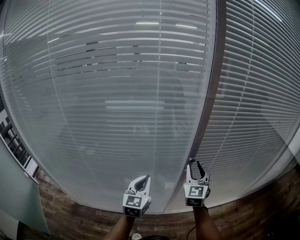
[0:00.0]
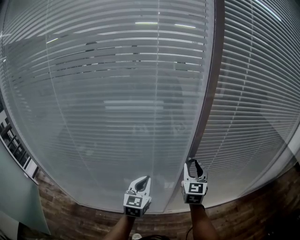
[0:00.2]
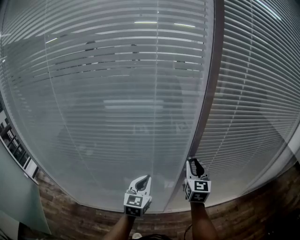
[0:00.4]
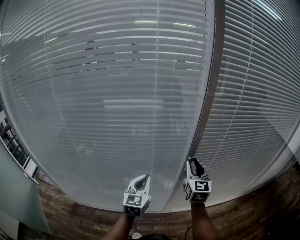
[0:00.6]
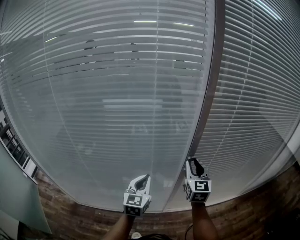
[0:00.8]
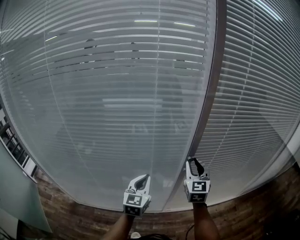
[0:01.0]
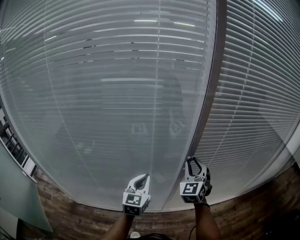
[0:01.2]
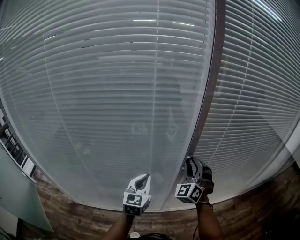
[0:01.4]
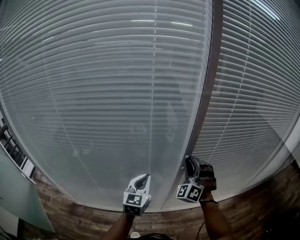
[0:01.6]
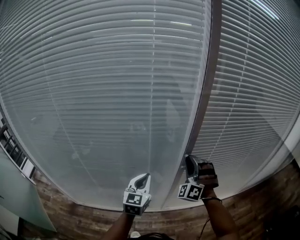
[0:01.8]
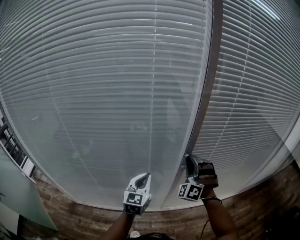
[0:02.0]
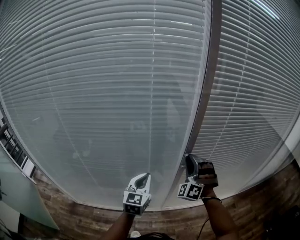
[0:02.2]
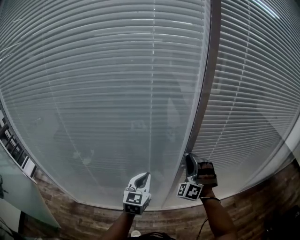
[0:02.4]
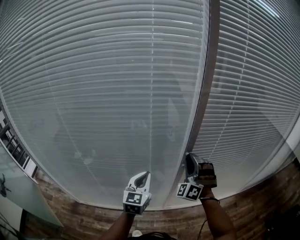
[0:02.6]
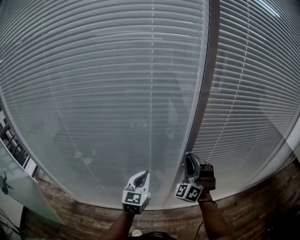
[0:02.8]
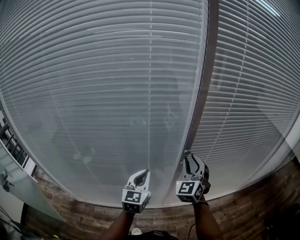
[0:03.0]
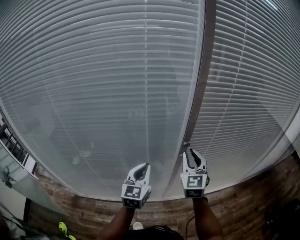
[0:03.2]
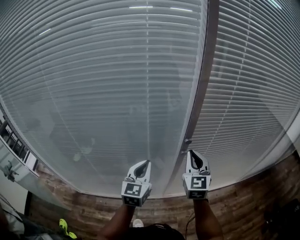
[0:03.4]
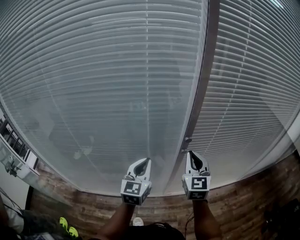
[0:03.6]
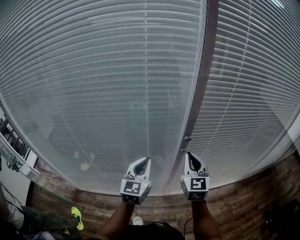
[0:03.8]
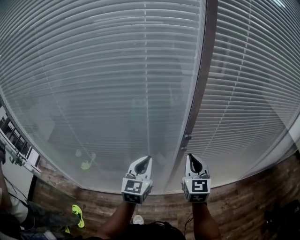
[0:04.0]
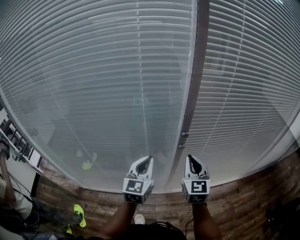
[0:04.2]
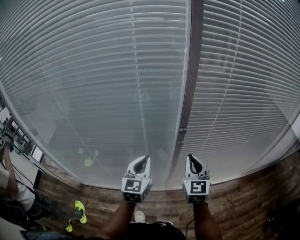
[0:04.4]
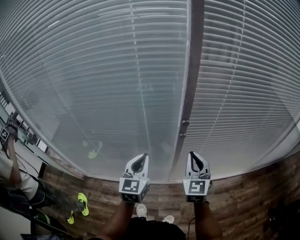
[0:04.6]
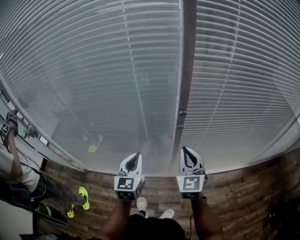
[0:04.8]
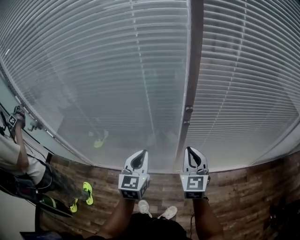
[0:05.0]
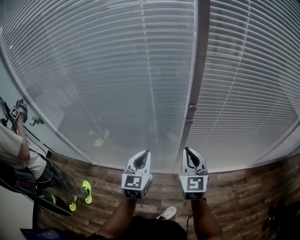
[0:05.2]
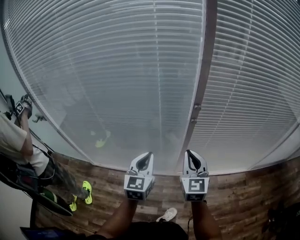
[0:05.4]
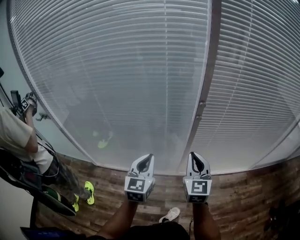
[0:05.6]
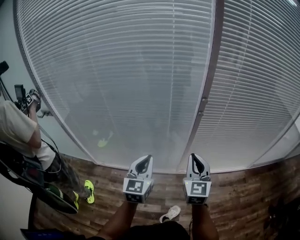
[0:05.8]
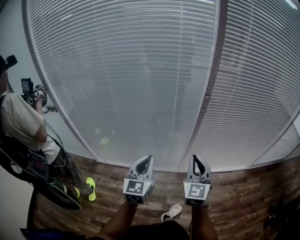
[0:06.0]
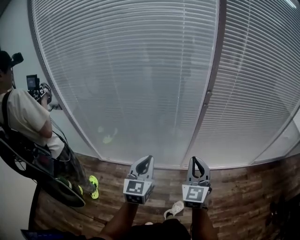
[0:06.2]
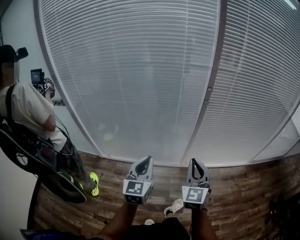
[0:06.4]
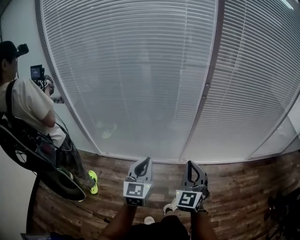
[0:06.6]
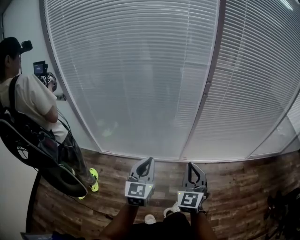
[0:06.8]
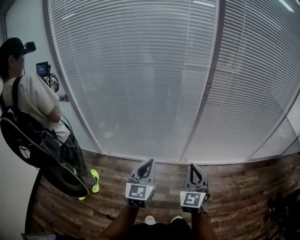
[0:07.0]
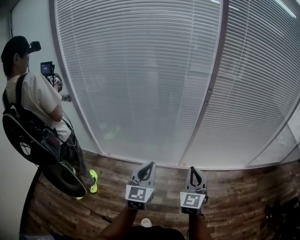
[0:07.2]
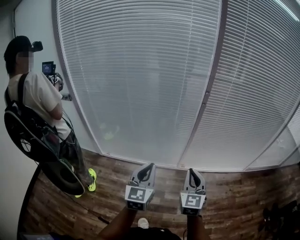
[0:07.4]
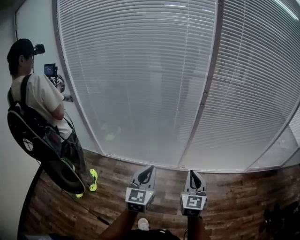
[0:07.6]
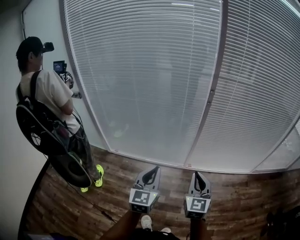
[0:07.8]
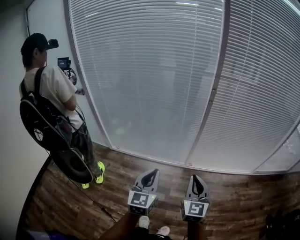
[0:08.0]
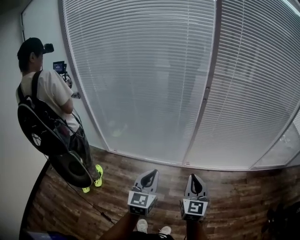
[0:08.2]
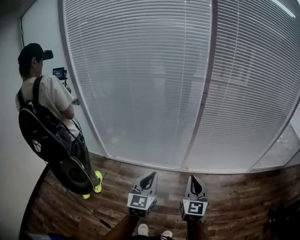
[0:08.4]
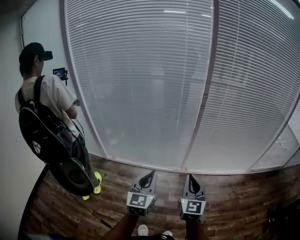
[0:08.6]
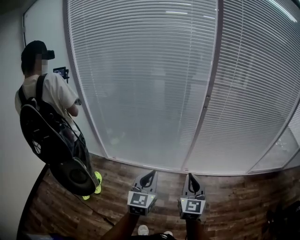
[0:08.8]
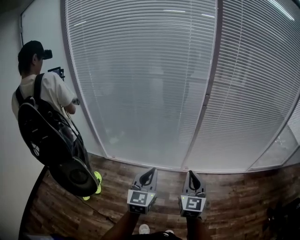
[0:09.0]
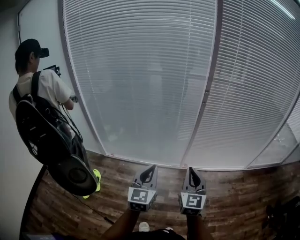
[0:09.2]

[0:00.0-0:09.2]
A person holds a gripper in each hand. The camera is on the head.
0:00.0 to 0:01.6: The right gripper rolls counterclockwise, seen from behind, by about 50 degrees.
0:01.6 to 0:03.0: The right gripper turns by some 30 degrees.
0:03.0 to 0:04.6: Both grippers travel together backward, roughly 5 cm. The right gripper changes its angle by approximately 30 degrees, and closes its fingers.
0:04.6 to 0:06.2: Both grippers move backward and to the left, about 25 cm.
0:06.2 to 0:07.6: The two grippers go roughly 10 cm backward.
0:07.6 to 0:09.2: The left gripper moves about 5 cm. Meanwhile the right gripper goes some 5 cm backward.

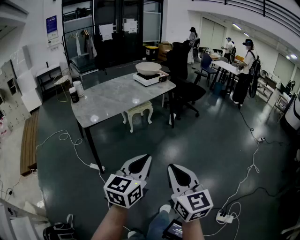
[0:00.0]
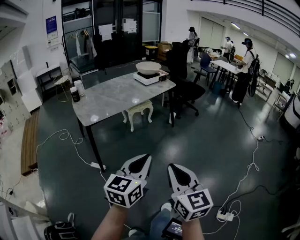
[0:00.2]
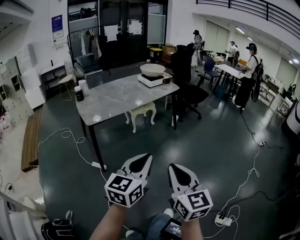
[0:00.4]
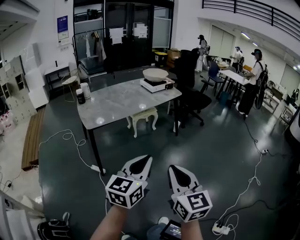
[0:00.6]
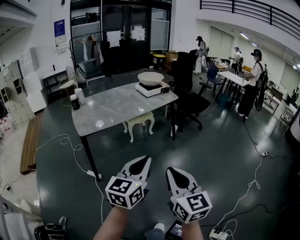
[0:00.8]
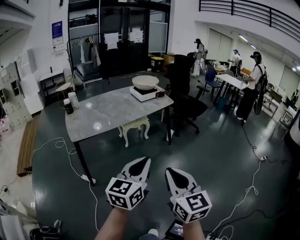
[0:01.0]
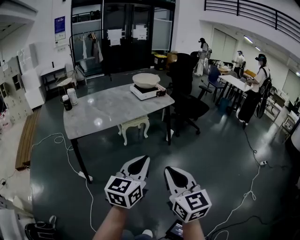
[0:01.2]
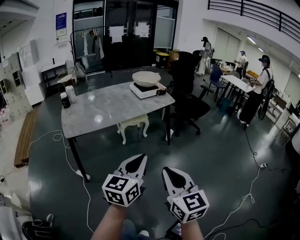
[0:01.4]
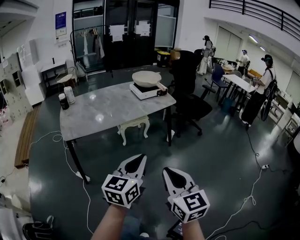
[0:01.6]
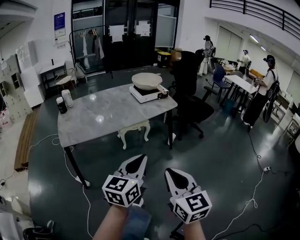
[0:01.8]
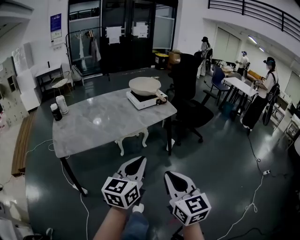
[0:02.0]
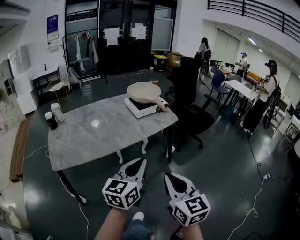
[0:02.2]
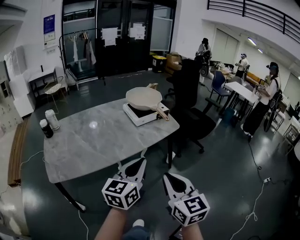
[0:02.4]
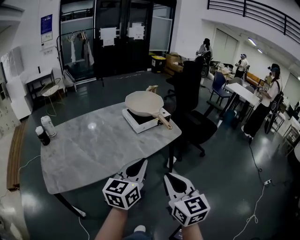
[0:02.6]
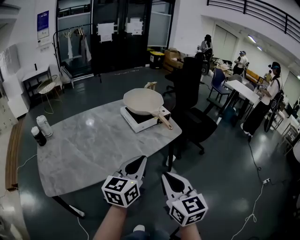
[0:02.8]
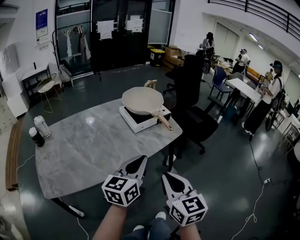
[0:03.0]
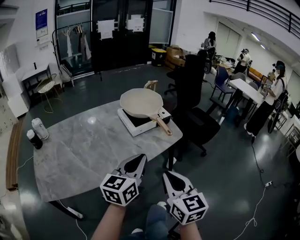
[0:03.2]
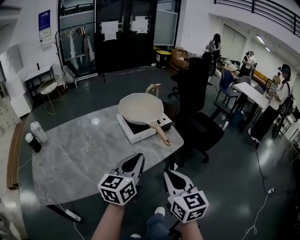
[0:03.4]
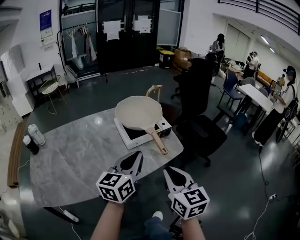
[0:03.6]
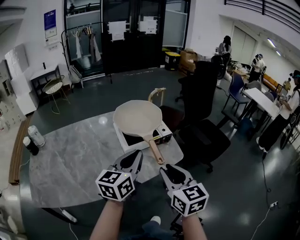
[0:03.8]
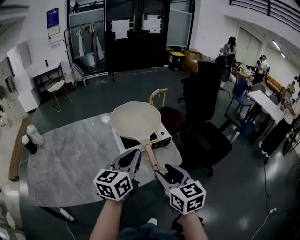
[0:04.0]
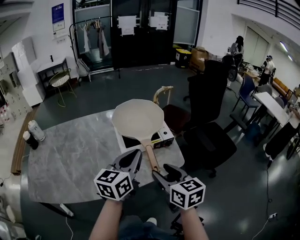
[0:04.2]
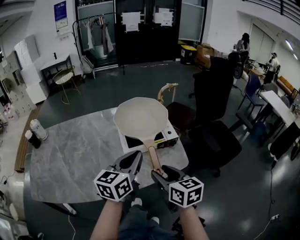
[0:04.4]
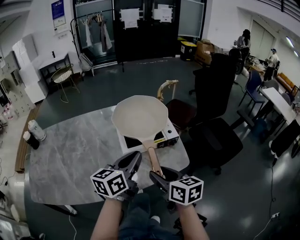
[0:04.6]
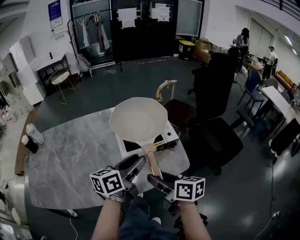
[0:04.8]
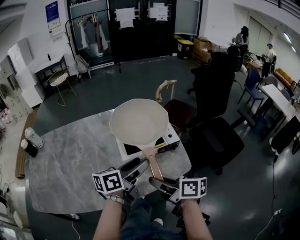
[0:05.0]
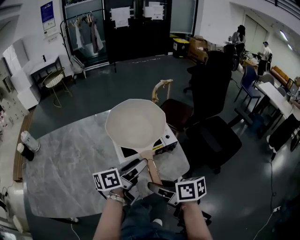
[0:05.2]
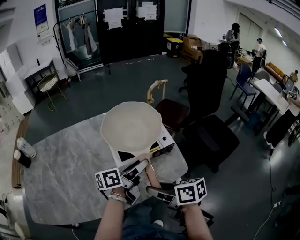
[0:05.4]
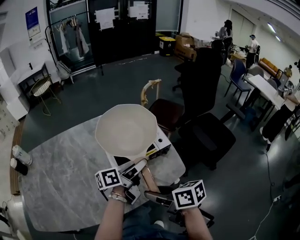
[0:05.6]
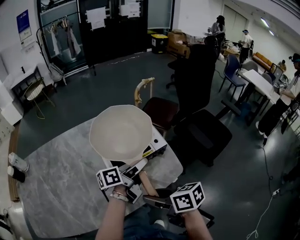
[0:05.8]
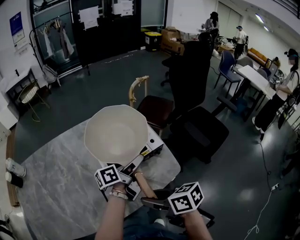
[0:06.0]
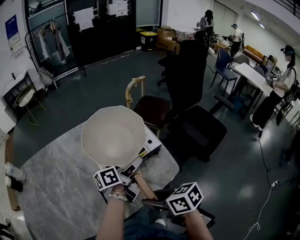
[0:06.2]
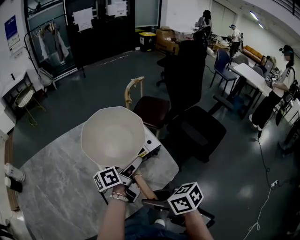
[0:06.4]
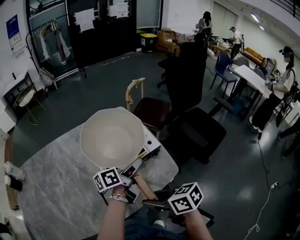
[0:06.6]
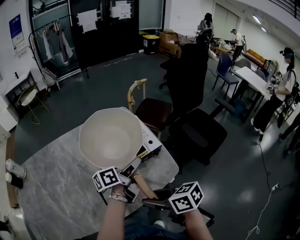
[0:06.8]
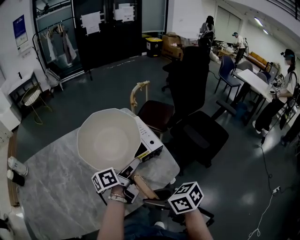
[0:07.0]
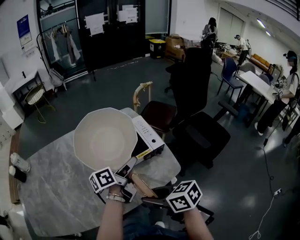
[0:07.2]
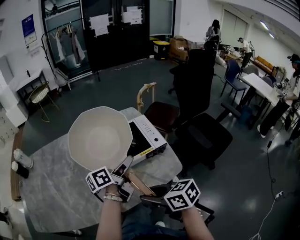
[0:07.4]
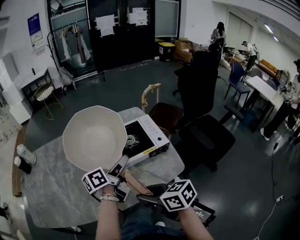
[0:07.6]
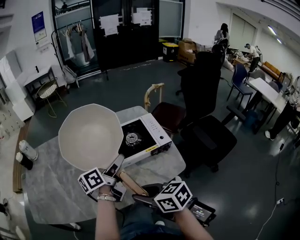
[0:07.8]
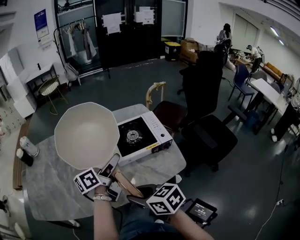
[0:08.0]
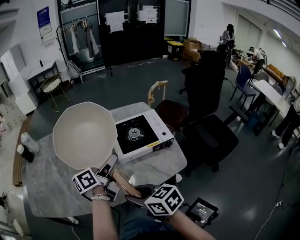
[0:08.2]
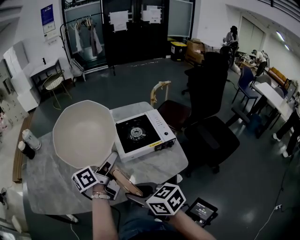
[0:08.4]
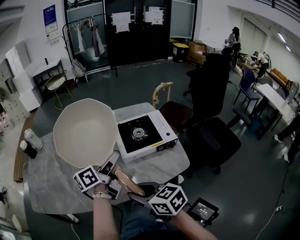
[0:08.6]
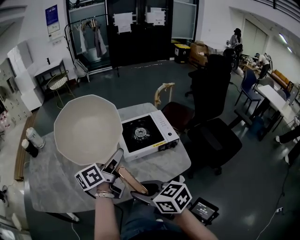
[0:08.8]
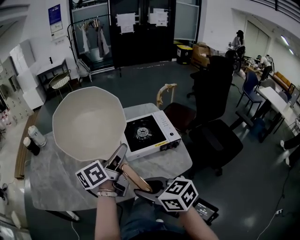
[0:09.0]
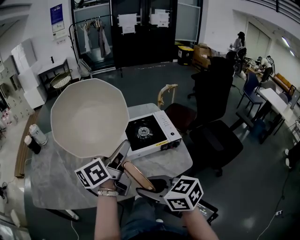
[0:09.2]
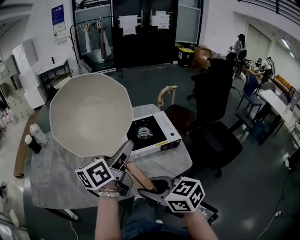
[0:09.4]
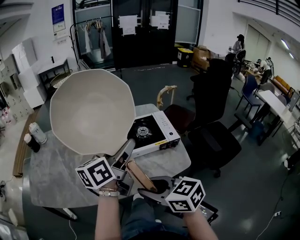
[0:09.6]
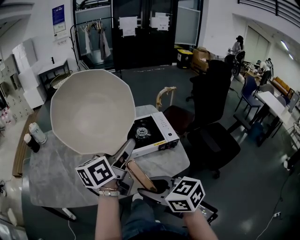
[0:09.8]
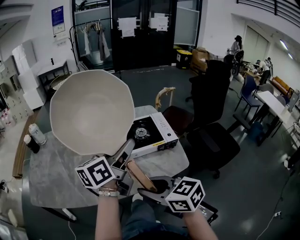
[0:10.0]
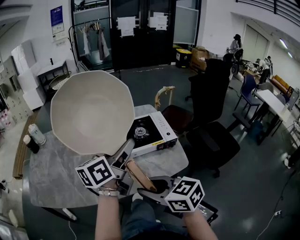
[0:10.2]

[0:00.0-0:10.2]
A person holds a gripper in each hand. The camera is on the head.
0:00.0 to 0:01.4: Both grippers travel together forward and to the right, roughly 20 cm.
0:01.4 to 0:03.0: The two grippers travel together, forward, roughly 40 cm.
0:03.0 to 0:04.4: Both grippers travel together forward, about 25 cm. The right gripper rotates about 30 degrees, and opens.
0:04.4 to 0:05.8: The right gripper changes its angle by roughly 30 degrees, while the left gripper shifts about 15 cm downward, forward and to the right, twists approximately 50 degrees counterclockwise, seen from behind, and opens.
0:05.8 to 0:07.2: There are only small adjustments of the grippers.
0:07.2 to 0:08.8: The right gripper moves to the left, approximately 10 cm, while the left gripper shifts roughly 15 cm to the left and upward, and turns by some 20 degrees.
0:08.8 to 0:10.2: The right gripper heads upward, covering roughly 5 cm. The left gripper travels upward by some 10 cm.

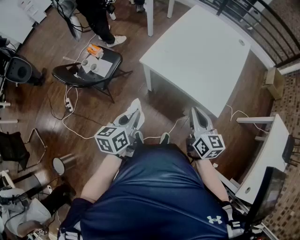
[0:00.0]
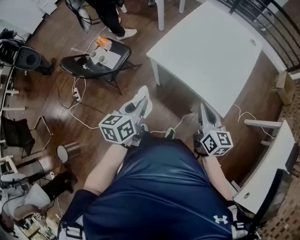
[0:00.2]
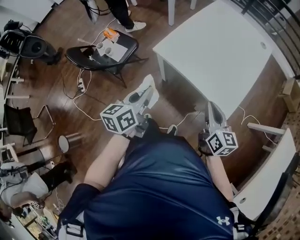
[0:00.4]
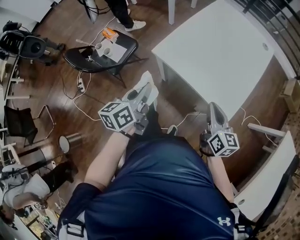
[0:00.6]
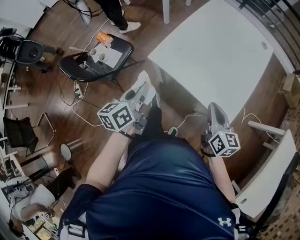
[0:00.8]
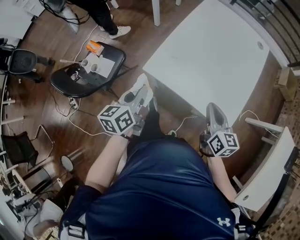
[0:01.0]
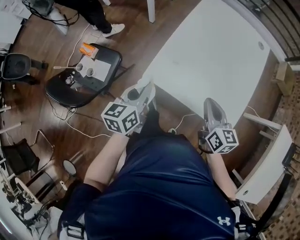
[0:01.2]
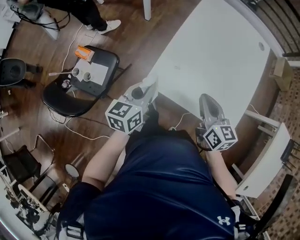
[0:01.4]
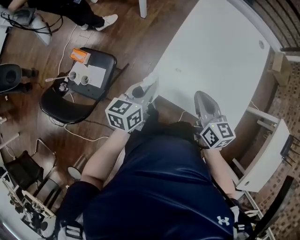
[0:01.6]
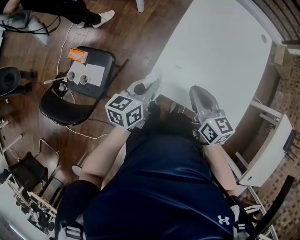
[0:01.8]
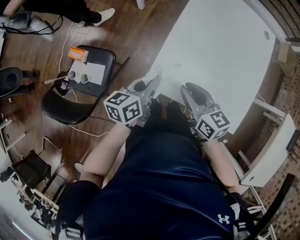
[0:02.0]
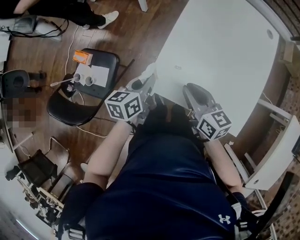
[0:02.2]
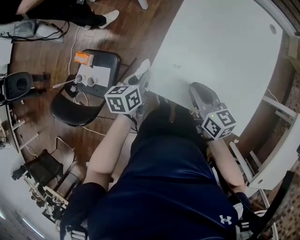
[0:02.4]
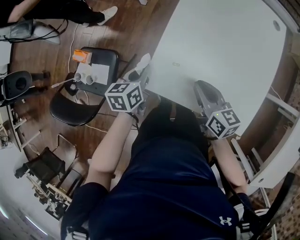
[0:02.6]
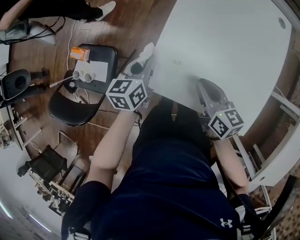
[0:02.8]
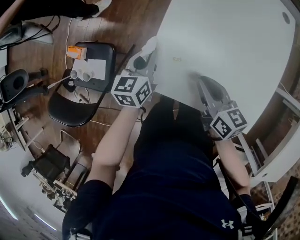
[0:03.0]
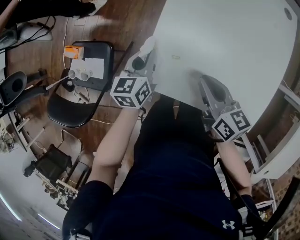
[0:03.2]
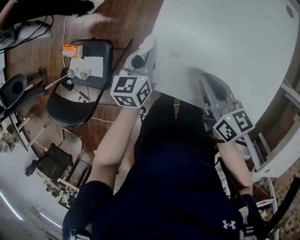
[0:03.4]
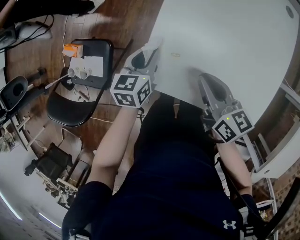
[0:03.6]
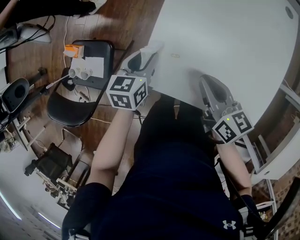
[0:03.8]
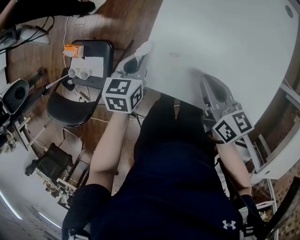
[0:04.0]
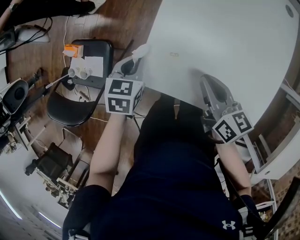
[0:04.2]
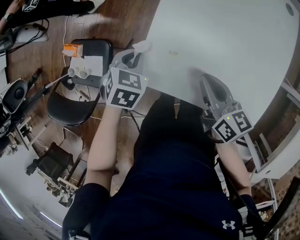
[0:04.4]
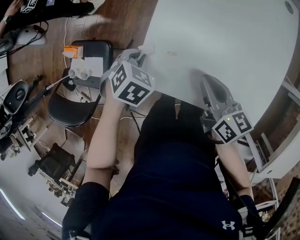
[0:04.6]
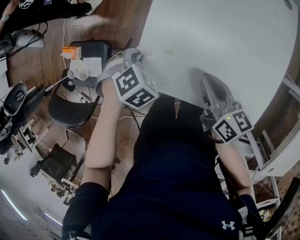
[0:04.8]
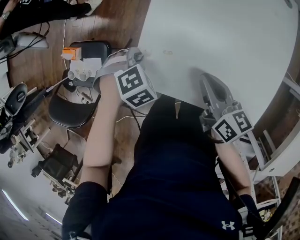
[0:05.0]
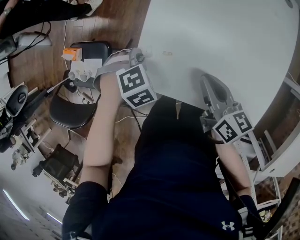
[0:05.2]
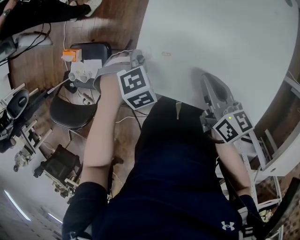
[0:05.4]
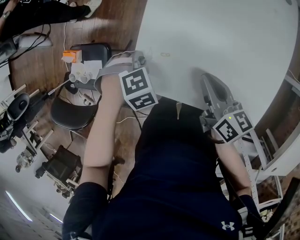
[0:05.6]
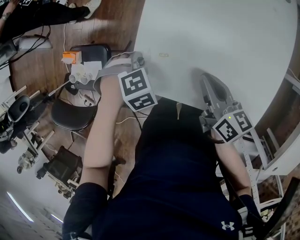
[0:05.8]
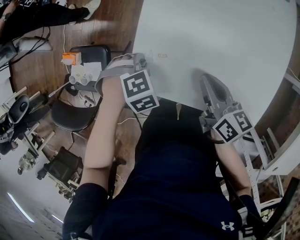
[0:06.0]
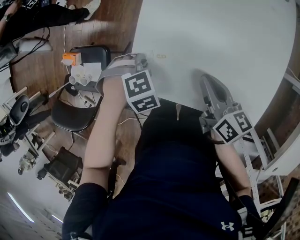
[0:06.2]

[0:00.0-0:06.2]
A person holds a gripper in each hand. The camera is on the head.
0:00.0 to 0:01.6: The grippers both shift forward by roughly 25 cm.
0:01.6 to 0:03.2: The right gripper travels downward by some 10 cm. Meanwhile the left gripper travels downward and forward by about 15 cm.
0:03.2 to 0:04.6: The left gripper tilts its fingers some 40 degrees downward, and opens, then closes once more.
0:04.6 to 0:06.2: The left gripper swivels about 40 degrees.
